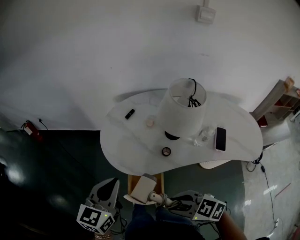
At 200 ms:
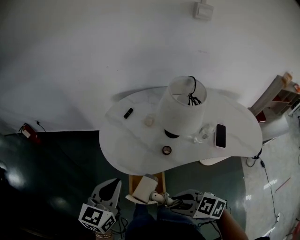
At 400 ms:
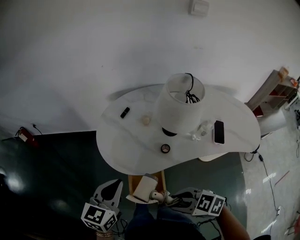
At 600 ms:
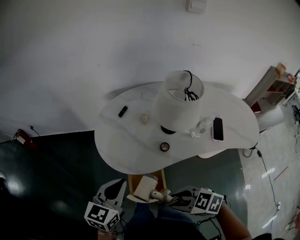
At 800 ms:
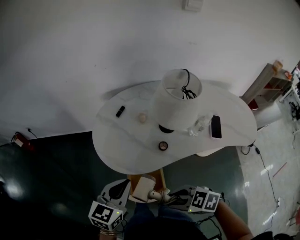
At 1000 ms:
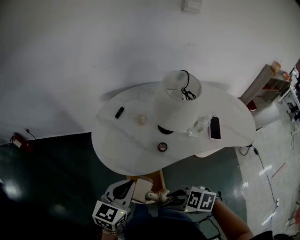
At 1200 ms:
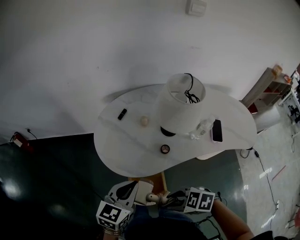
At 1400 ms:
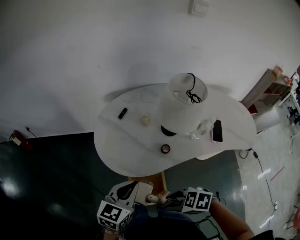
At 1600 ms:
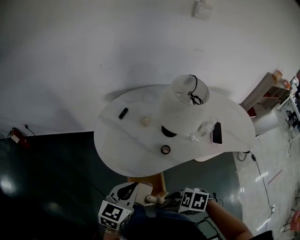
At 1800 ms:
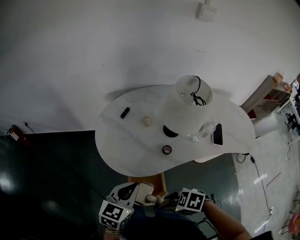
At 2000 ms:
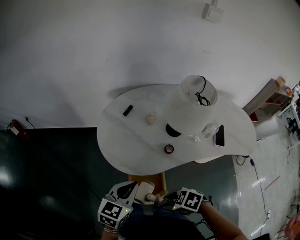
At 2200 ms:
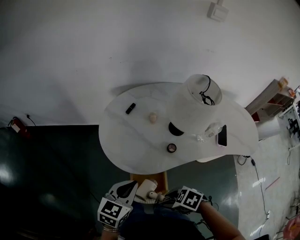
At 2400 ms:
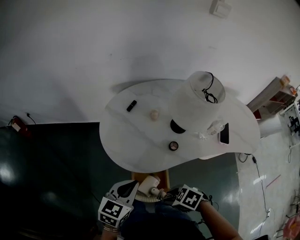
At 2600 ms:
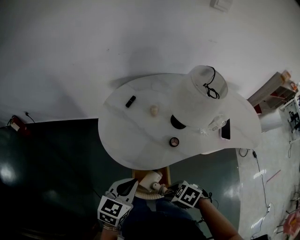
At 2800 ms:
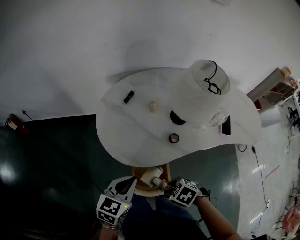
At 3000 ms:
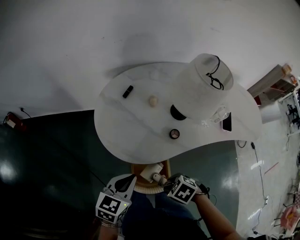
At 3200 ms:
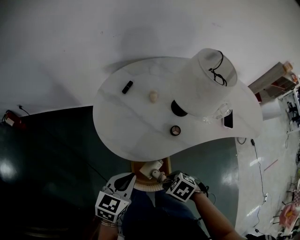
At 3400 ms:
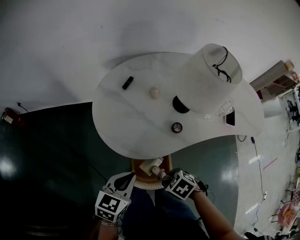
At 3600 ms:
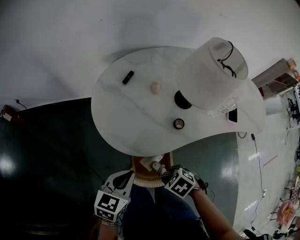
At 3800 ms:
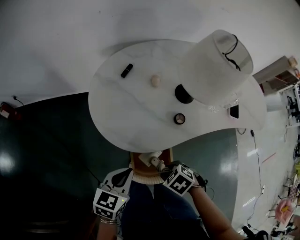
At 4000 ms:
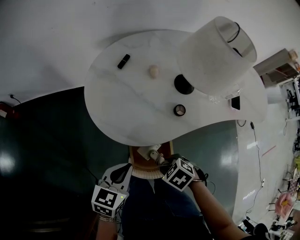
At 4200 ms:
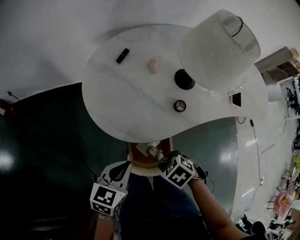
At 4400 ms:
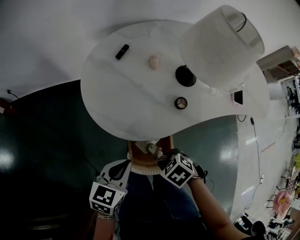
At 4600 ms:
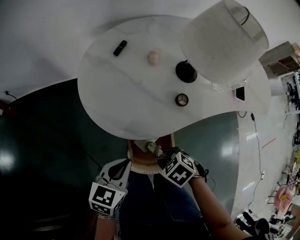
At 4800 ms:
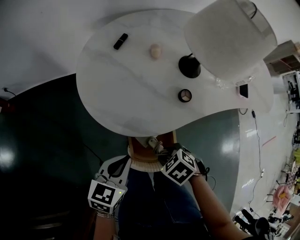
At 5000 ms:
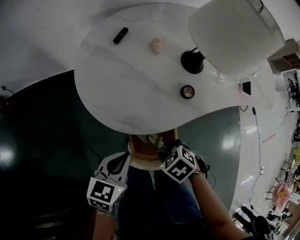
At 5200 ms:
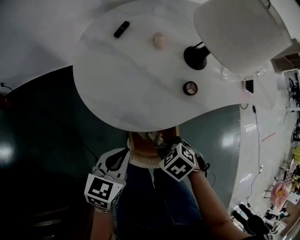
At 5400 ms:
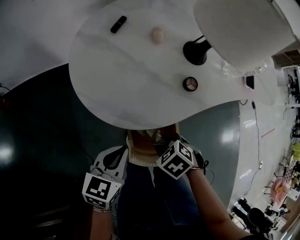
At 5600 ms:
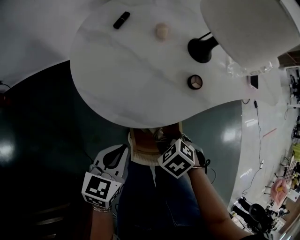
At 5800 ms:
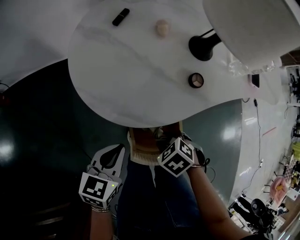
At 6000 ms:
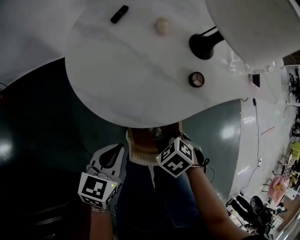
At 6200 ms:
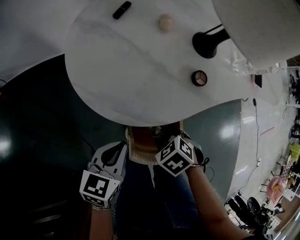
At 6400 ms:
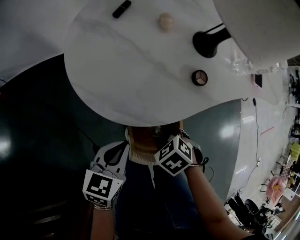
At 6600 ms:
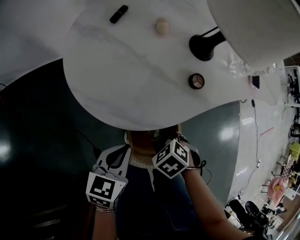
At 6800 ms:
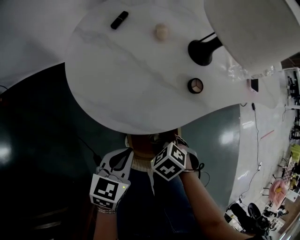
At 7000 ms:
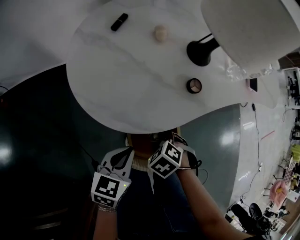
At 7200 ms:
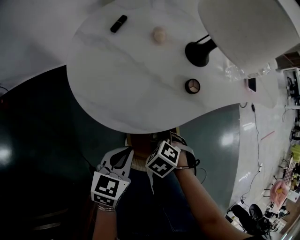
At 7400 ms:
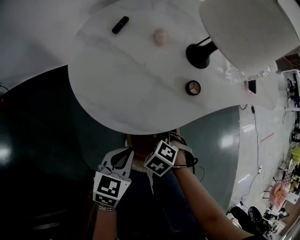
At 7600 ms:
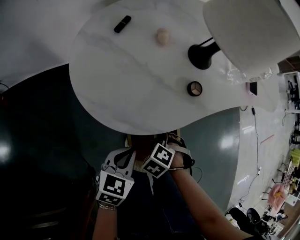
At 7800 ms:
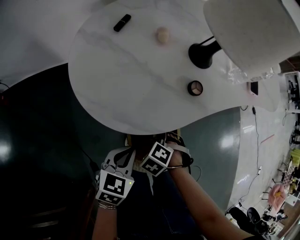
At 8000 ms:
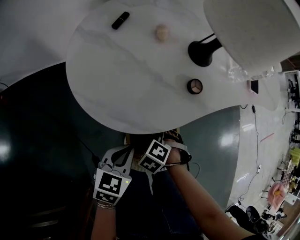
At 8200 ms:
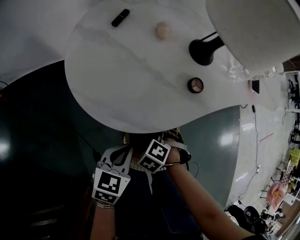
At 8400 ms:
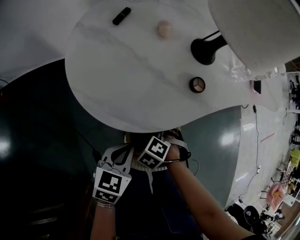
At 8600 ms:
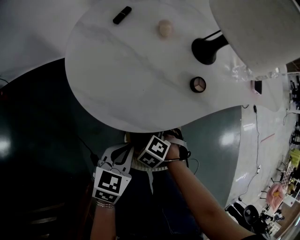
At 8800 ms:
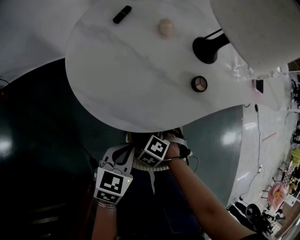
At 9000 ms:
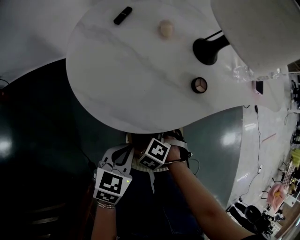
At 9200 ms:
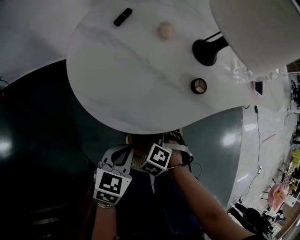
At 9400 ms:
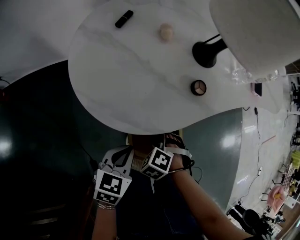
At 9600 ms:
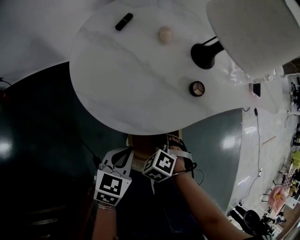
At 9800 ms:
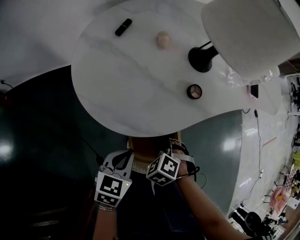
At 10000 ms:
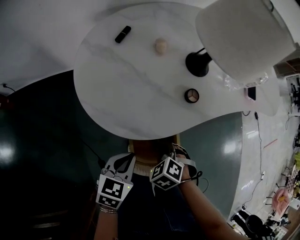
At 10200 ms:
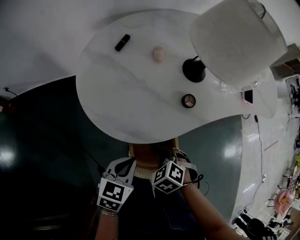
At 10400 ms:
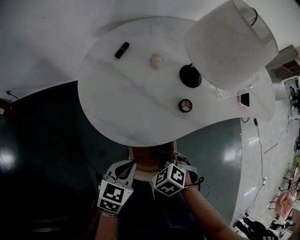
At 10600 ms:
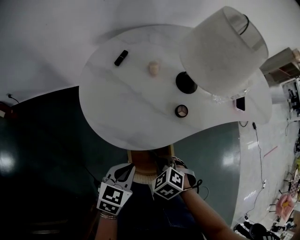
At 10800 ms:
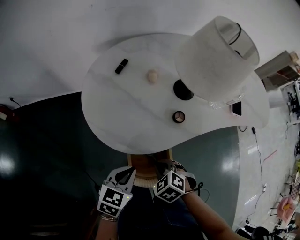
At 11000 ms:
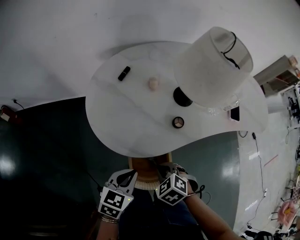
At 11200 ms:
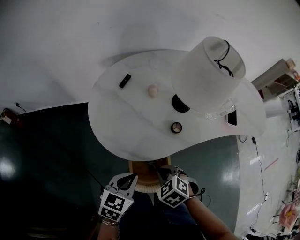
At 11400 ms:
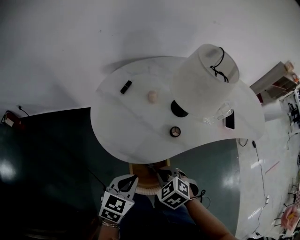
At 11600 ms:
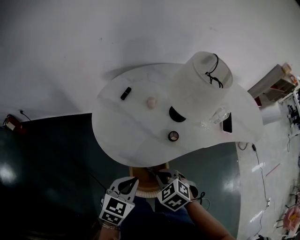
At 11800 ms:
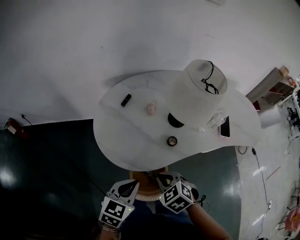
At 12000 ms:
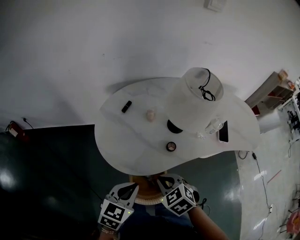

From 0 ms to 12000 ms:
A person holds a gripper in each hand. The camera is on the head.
From 0 ms to 1600 ms: Both grippers travel together downward, roughly 10 cm. The left gripper changes its angle by roughly 20 degrees, while the right gripper rotates approximately 20 degrees.
From 1600 ms to 3000 ms: The left gripper heads downward, covering approximately 5 cm; the right gripper travels downward by roughly 10 cm, and turns by about 20 degrees.
From 3000 ms to 4400 ms: Both grippers travel together downward, some 5 cm.
From 4400 ms to 6000 ms: Both grippers travel together downward, some 5 cm.
From 6000 ms to 7600 ms: The left gripper shifts by some 5 cm; the right gripper moves about 5 cm, and swivels about 20 degrees.
From 7600 ms to 9000 ms: The grippers move only a little.
From 9000 ms to 10400 ms: The right gripper moves upward, approximately 10 cm, and closes.
From 10400 ms to 12000 ms: The two grippers go approximately 15 cm upward.

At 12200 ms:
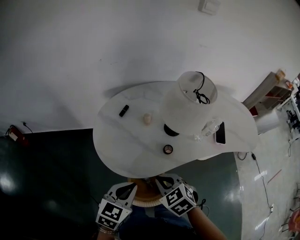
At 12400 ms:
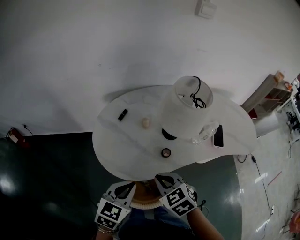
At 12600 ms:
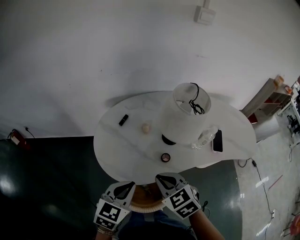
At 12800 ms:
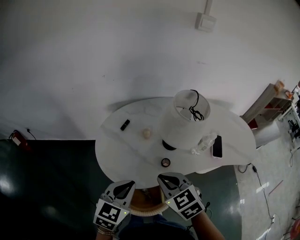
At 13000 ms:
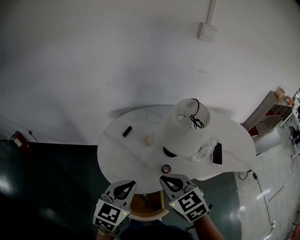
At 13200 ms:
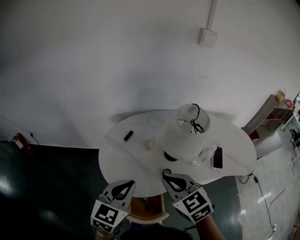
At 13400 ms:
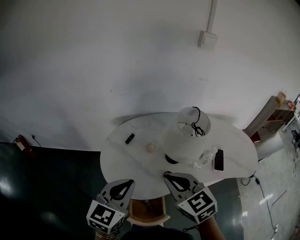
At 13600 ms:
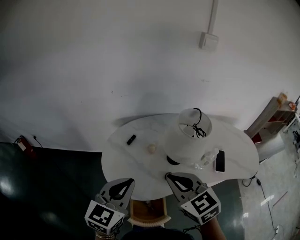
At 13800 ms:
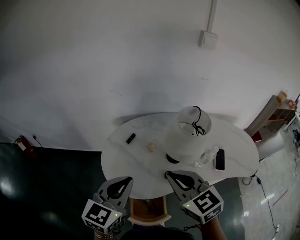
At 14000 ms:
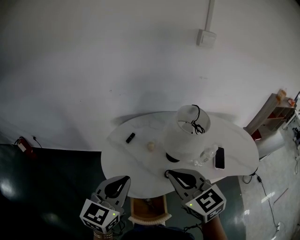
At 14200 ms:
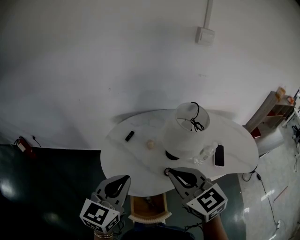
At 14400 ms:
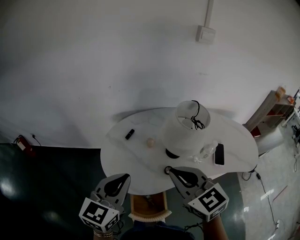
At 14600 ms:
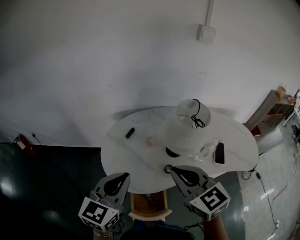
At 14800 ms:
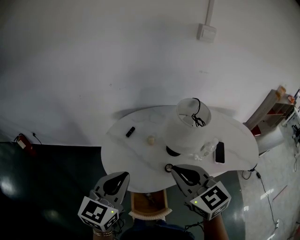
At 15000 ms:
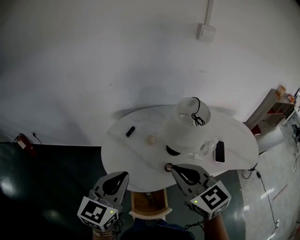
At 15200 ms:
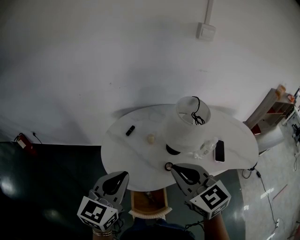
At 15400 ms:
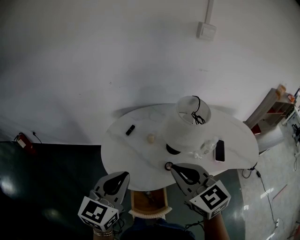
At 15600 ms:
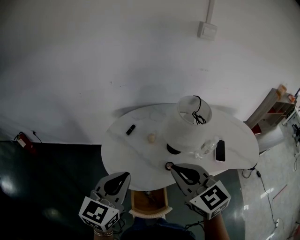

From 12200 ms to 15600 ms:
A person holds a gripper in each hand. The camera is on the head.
From 12200 ms to 13800 ms: The right gripper travels upward by approximately 20 cm, and changes its angle by approximately 30 degrees; the left gripper heads upward and forward, covering about 20 cm, and rotates some 20 degrees.
From 13800 ms to 15600 ms: The grippers stay close to where they were, moving slightly.

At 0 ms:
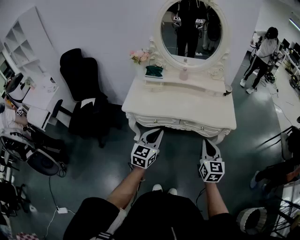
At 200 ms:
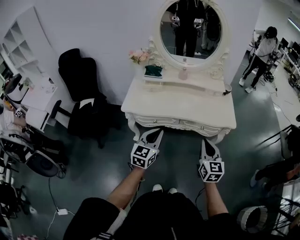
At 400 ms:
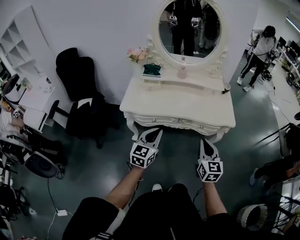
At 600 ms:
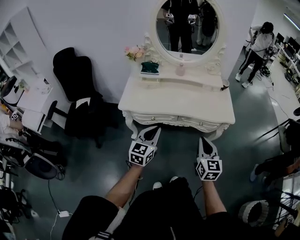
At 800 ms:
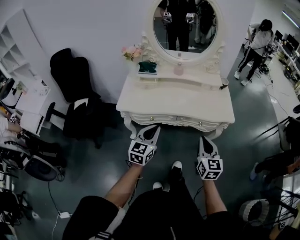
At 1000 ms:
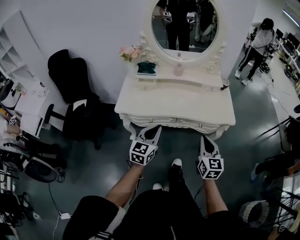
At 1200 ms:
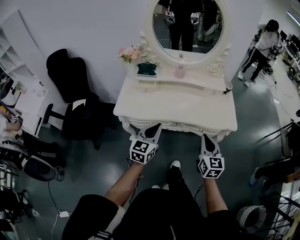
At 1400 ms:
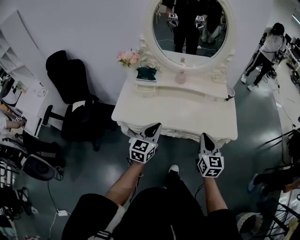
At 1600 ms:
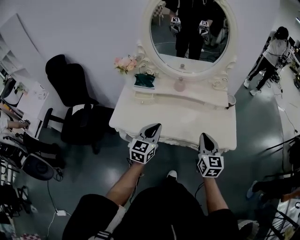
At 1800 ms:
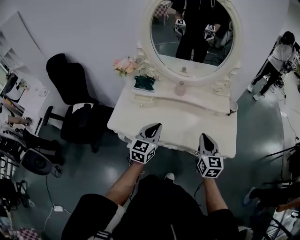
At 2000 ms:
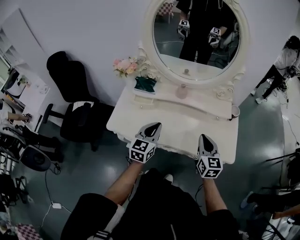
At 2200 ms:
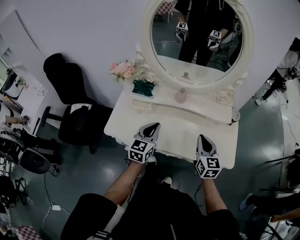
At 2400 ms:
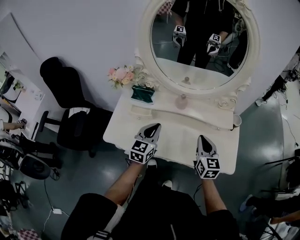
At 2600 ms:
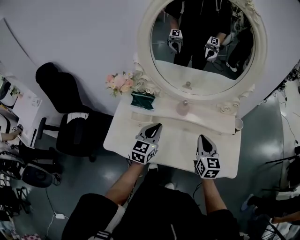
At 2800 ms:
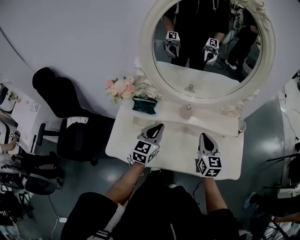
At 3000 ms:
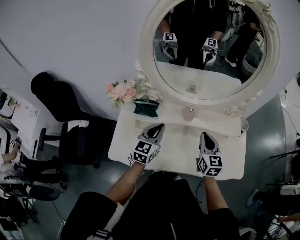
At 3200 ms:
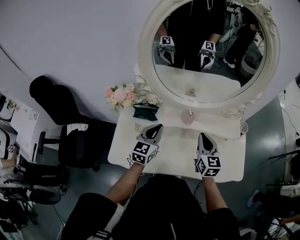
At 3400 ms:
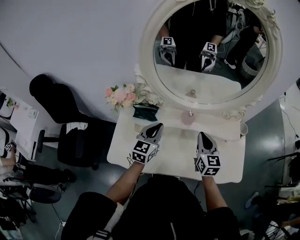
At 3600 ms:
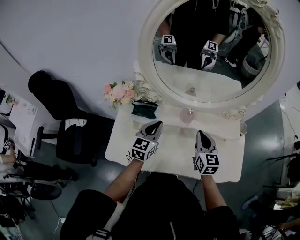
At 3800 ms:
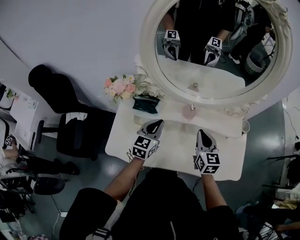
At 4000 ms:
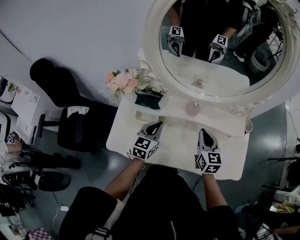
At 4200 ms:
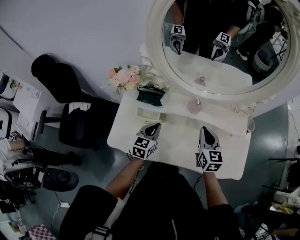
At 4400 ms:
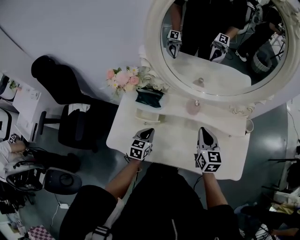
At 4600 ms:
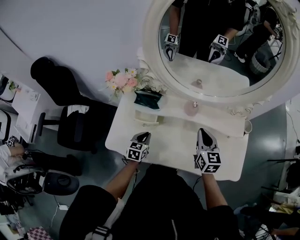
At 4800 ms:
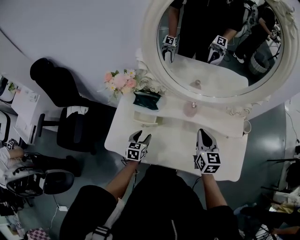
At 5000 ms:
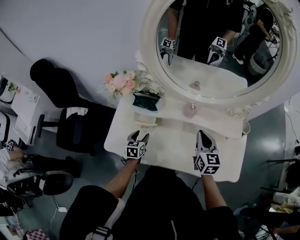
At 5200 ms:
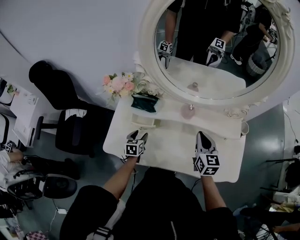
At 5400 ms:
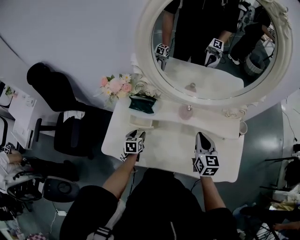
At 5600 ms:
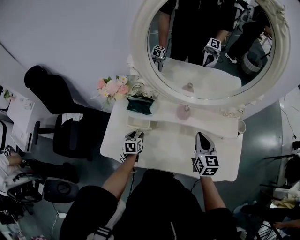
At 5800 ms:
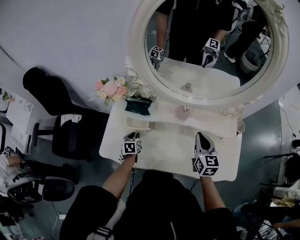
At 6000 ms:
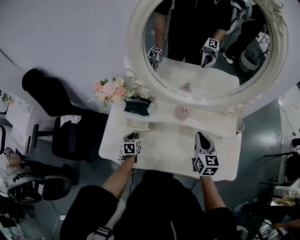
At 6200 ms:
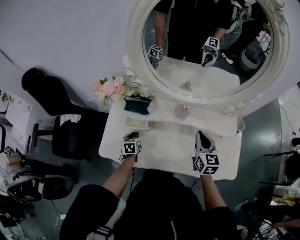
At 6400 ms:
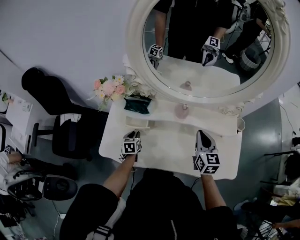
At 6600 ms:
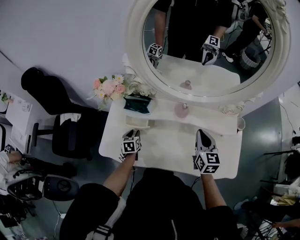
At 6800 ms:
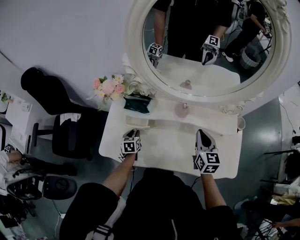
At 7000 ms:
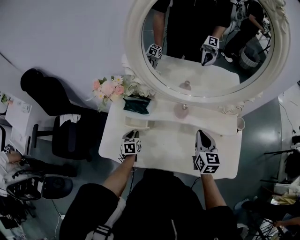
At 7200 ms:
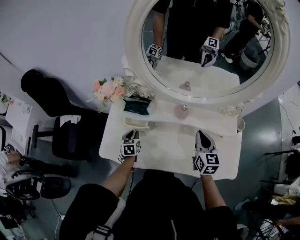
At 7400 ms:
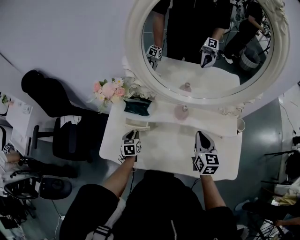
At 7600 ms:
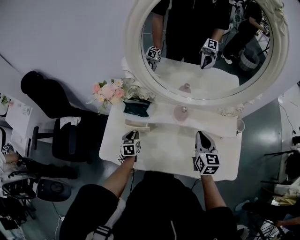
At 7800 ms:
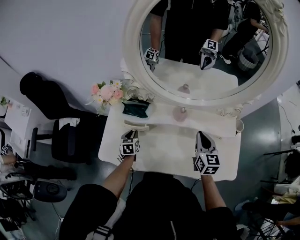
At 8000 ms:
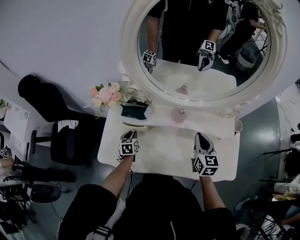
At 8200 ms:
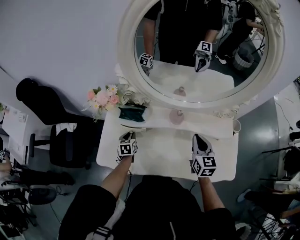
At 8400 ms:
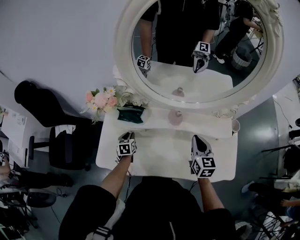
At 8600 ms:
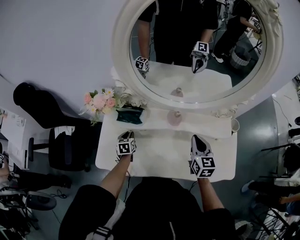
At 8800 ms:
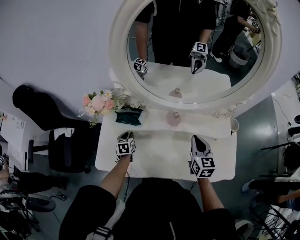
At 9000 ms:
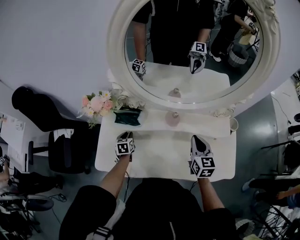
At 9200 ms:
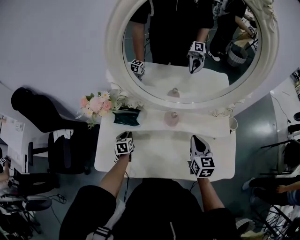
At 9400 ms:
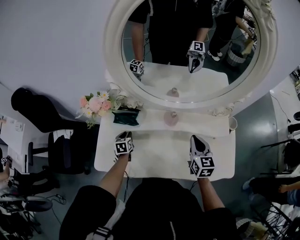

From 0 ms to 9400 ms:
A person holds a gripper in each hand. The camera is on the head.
From 0 ms to 1600 ms: The two grippers go some 25 cm forward.
From 1600 ms to 3200 ms: The grippers both shift forward by approximately 25 cm.
From 3200 ms to 4800 ms: The left gripper shifts roughly 20 cm downward, turns by about 30 degrees, and opens.
From 4800 ms to 6200 ms: The left gripper shifts roughly 5 cm downward, and closes its fingers.
From 6200 ms to 7800 ms: There are only small adjustments of the grippers.
From 7800 ms to 9400 ms: There are only small adjustments of the grippers.
